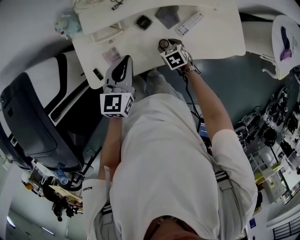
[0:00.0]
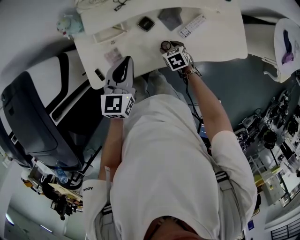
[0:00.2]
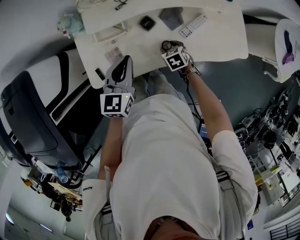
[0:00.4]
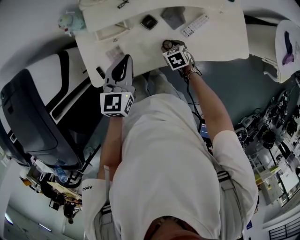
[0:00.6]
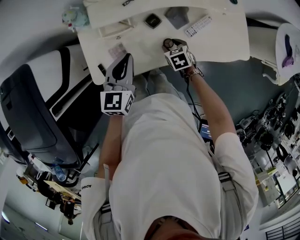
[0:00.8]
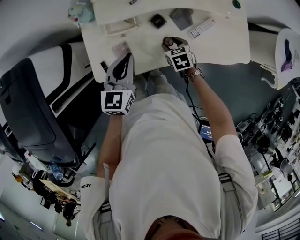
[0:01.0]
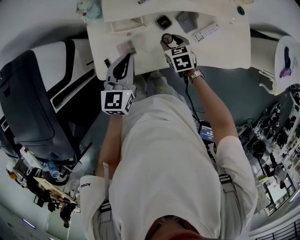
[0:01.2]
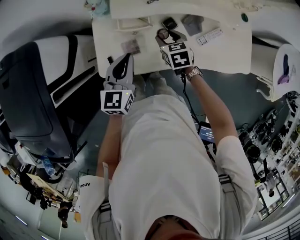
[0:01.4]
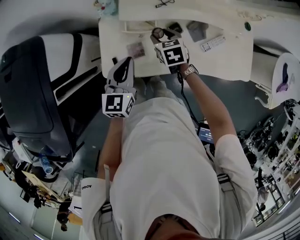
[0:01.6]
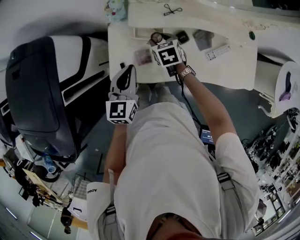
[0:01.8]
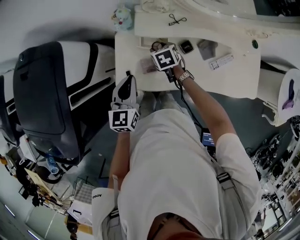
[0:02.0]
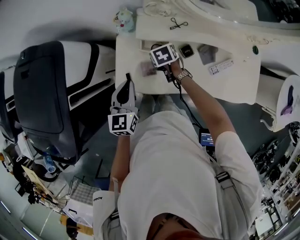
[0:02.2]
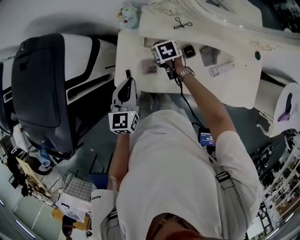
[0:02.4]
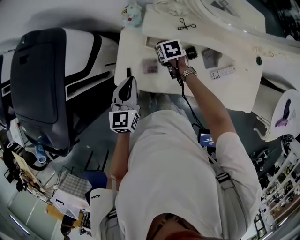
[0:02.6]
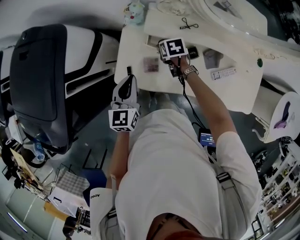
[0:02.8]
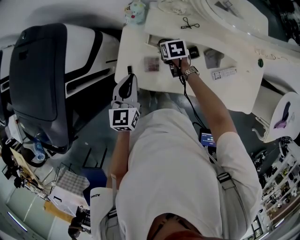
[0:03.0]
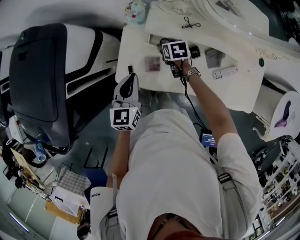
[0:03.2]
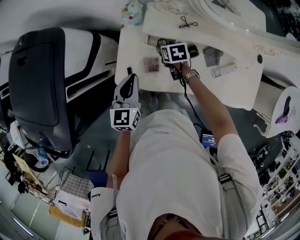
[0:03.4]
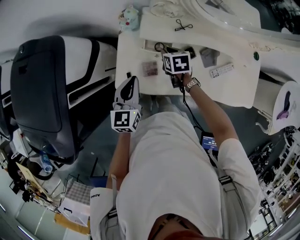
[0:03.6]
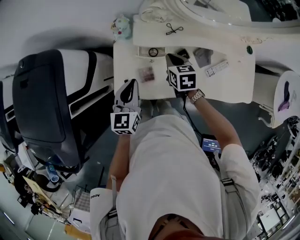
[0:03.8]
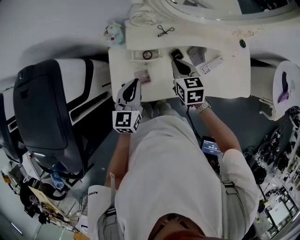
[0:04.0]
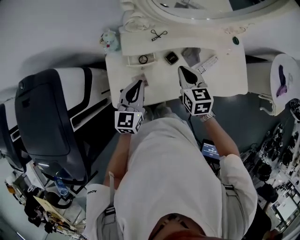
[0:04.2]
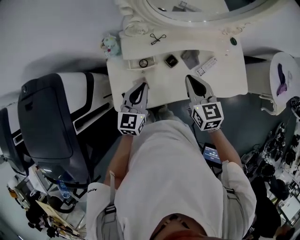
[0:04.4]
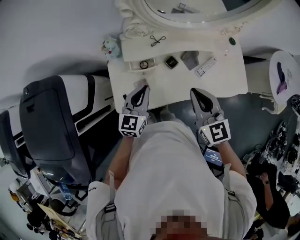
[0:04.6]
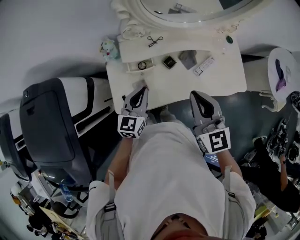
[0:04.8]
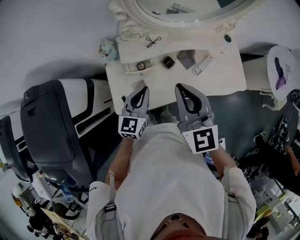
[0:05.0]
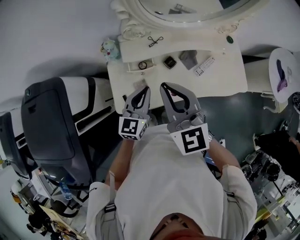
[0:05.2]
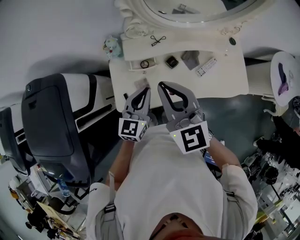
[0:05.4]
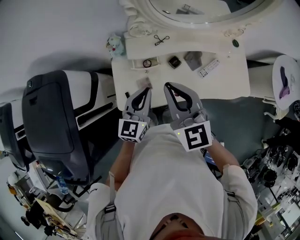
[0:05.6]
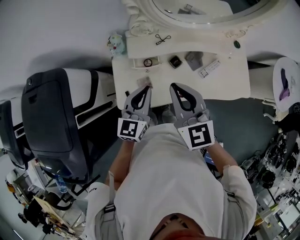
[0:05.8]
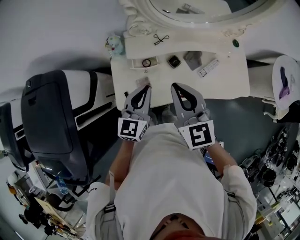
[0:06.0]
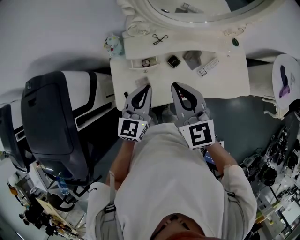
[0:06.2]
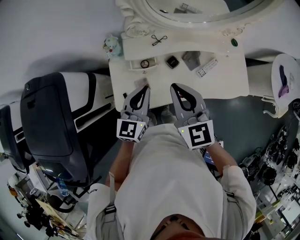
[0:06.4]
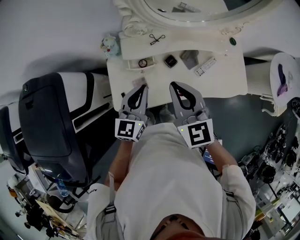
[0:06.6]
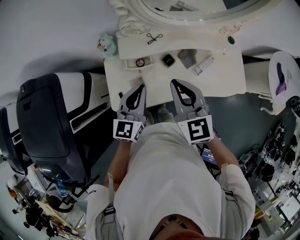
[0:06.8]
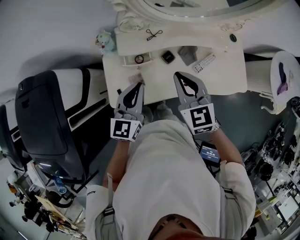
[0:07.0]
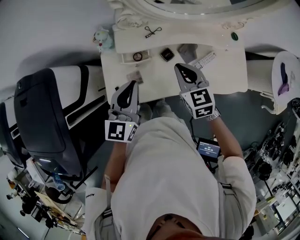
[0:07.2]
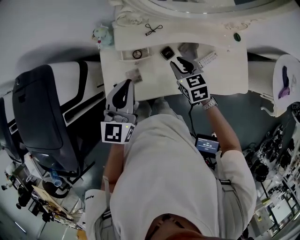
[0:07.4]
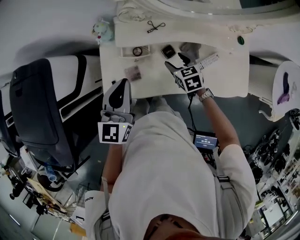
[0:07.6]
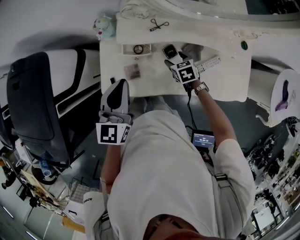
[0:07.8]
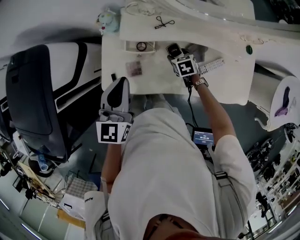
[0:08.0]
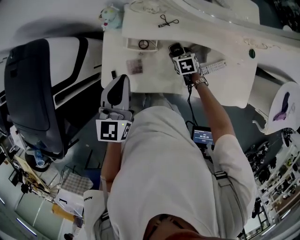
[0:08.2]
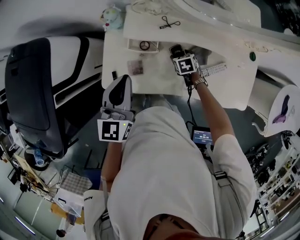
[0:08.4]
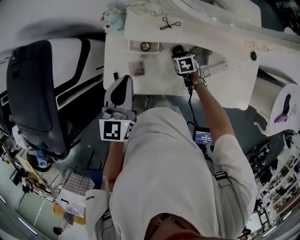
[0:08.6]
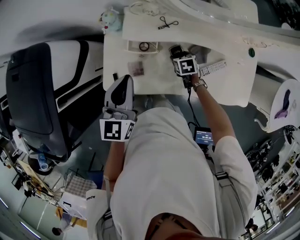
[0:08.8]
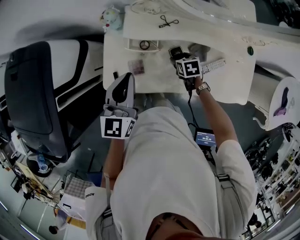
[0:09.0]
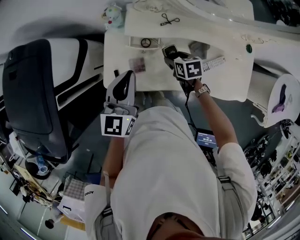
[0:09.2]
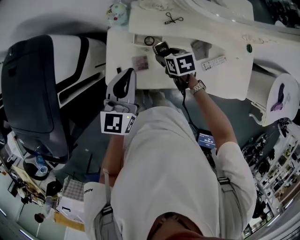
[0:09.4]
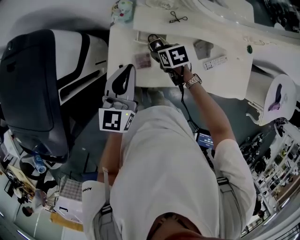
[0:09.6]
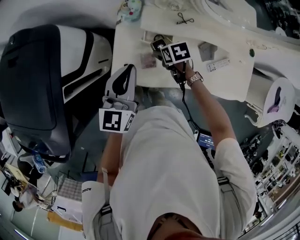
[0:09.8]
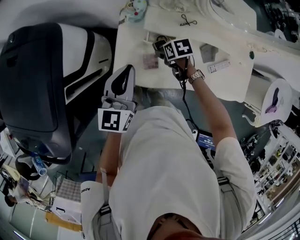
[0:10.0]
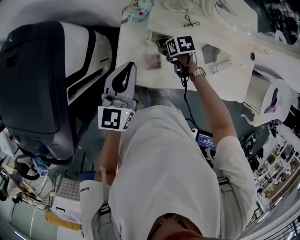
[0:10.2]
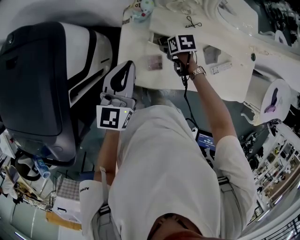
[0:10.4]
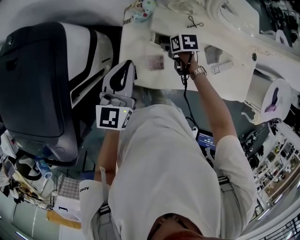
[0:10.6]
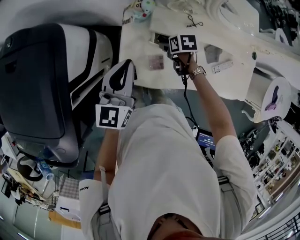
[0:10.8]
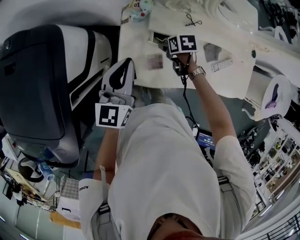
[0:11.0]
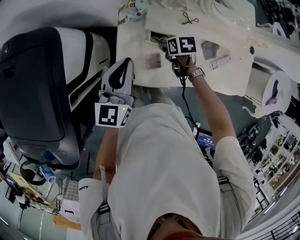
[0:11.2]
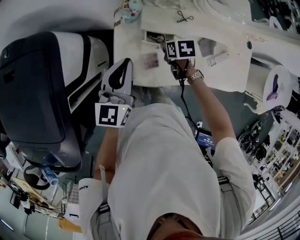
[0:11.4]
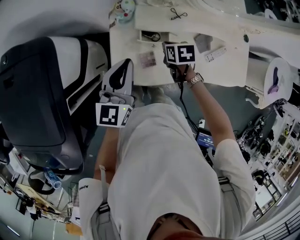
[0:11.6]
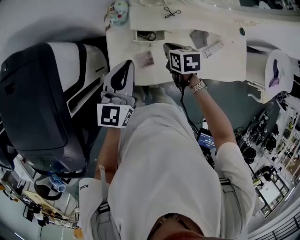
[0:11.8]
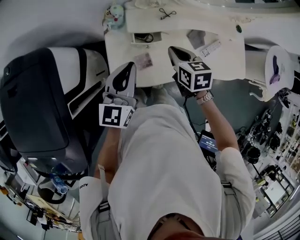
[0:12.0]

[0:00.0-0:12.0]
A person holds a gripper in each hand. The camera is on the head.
0:00.0 to 0:01.6: The left gripper moves to the left, some 15 cm; the right gripper travels to the left, upward and forward by about 25 cm.
0:01.6 to 0:03.0: The left gripper shifts roughly 5 cm to the left; the right gripper goes about 10 cm forward and downward.
0:03.0 to 0:04.4: The left gripper shifts by some 10 cm, and turns by roughly 30 degrees. Meanwhile the right gripper heads upward, covering about 25 cm, tilts its fingers roughly 40 degrees upward, and closes up.
0:04.4 to 0:06.0: The left gripper ends up some 5 cm from where it was, while the right gripper goes roughly 15 cm upward and to the left.
0:06.0 to 0:07.6: The right gripper moves downward and forward, roughly 30 cm, tips its fingers downward by approximately 40 degrees, and opens its fingers.
0:07.6 to 0:09.0: The right gripper goes about 10 cm downward.
0:09.0 to 0:10.4: Both grippers travel together to the left and forward, some 15 cm.
0:10.4 to 0:12.0: The right gripper heads upward, covering about 15 cm, turns by some 40 degrees, and closes its fingers; the left gripper ends up approximately 5 cm from where it was.

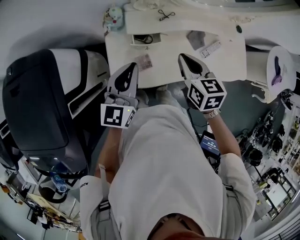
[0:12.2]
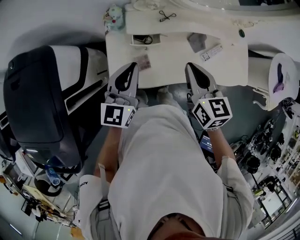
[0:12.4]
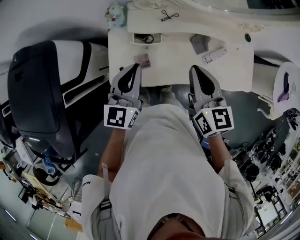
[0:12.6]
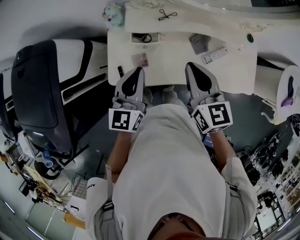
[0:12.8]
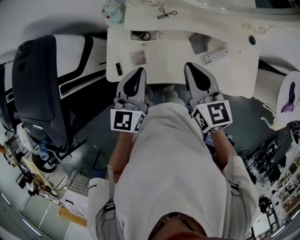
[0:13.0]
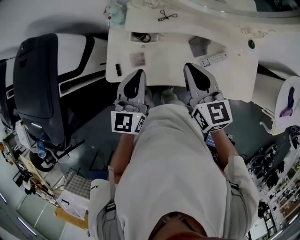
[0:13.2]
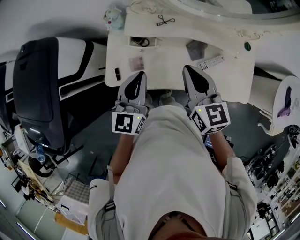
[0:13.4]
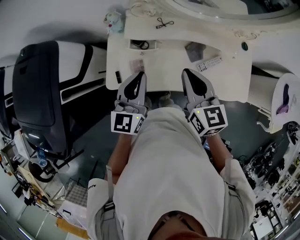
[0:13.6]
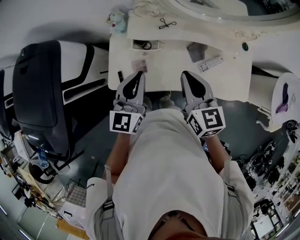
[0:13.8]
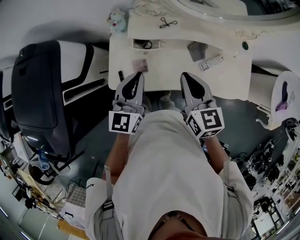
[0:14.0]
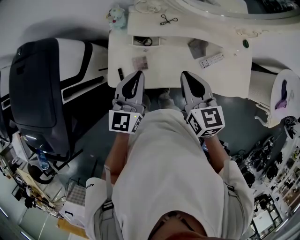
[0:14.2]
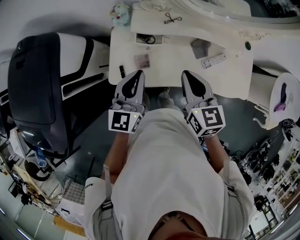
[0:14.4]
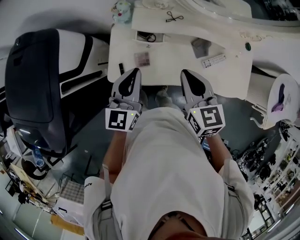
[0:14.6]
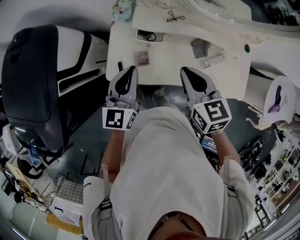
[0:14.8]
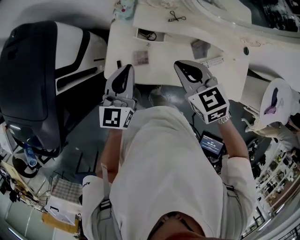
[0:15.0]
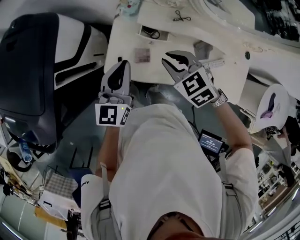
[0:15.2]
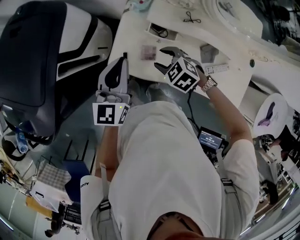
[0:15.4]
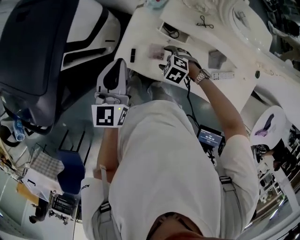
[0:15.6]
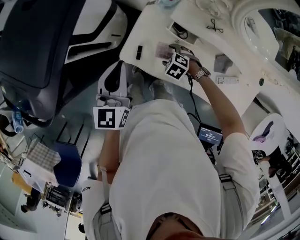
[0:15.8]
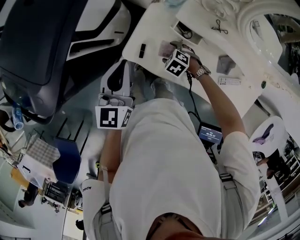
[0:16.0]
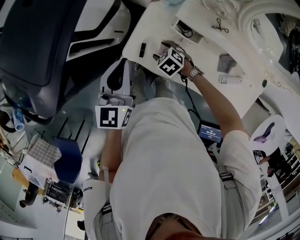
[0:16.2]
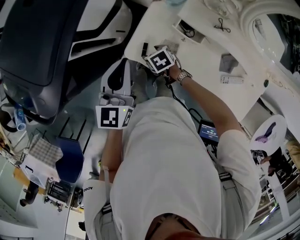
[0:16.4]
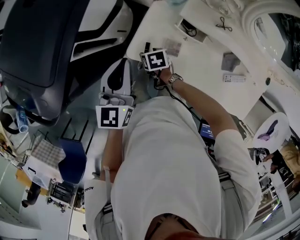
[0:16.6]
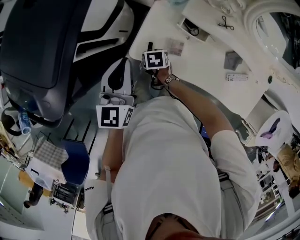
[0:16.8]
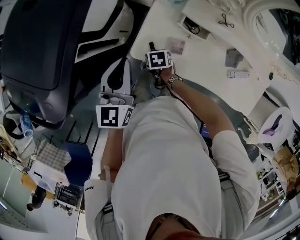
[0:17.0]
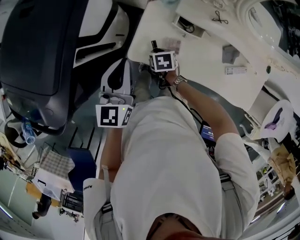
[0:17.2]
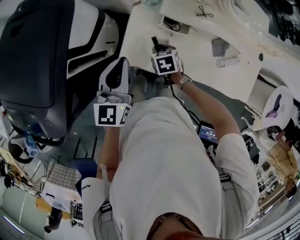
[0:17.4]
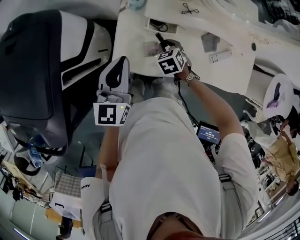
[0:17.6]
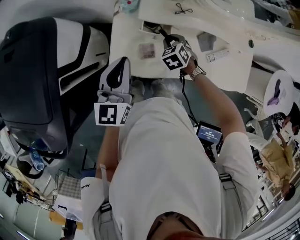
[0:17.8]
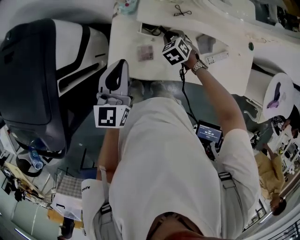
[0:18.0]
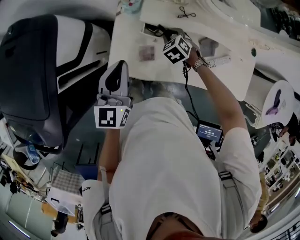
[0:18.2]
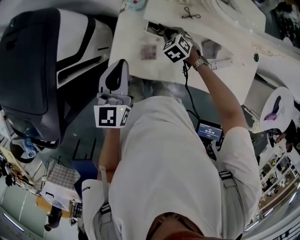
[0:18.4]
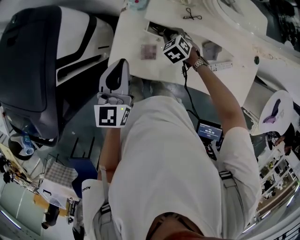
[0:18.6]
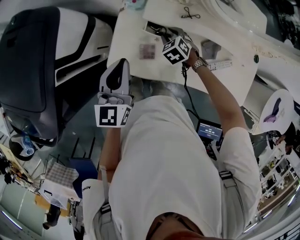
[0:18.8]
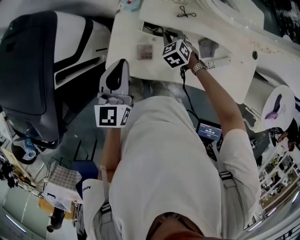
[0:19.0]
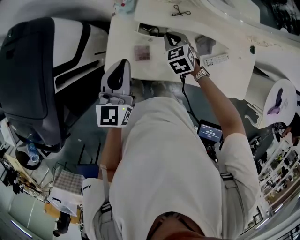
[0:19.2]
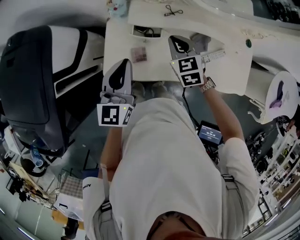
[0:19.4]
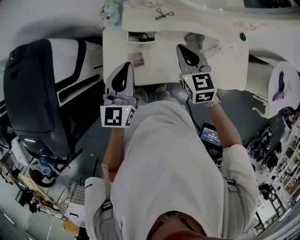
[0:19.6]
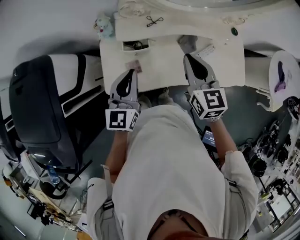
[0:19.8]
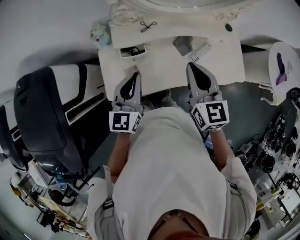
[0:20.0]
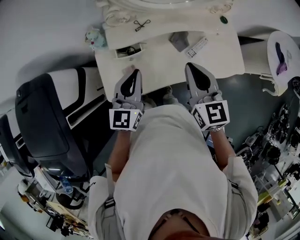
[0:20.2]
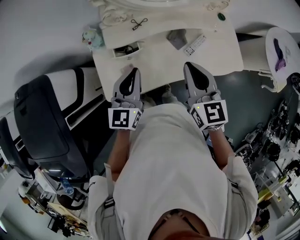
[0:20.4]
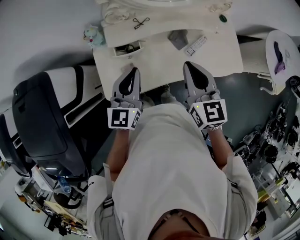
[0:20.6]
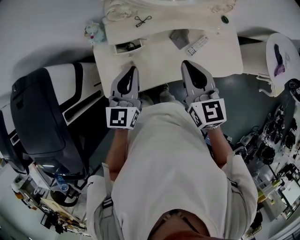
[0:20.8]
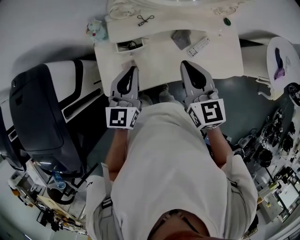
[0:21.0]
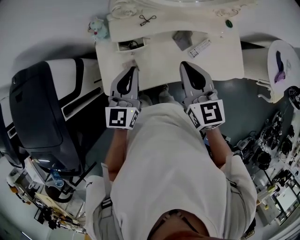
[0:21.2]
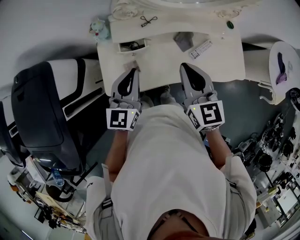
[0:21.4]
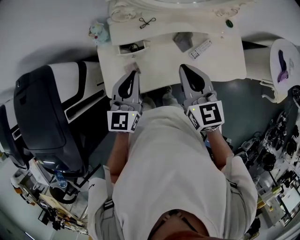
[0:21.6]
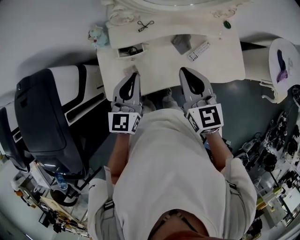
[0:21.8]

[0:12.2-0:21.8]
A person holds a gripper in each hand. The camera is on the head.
0:12.2 to 0:13.8: The right gripper shifts approximately 10 cm to the right and upward; the left gripper moves to the right, about 10 cm.
0:13.8 to 0:15.4: The right gripper is displaced downward by about 20 cm, points its fingers approximately 40 degrees further downward, and opens up, while the left gripper changes place by about 15 cm.
0:15.4 to 0:17.0: The left gripper changes place by approximately 10 cm. The right gripper moves downward, some 15 cm, rolls clockwise, seen from behind, by some 50 degrees, and closes up.
0:17.0 to 0:18.6: The right gripper shifts by some 25 cm, and rotates approximately 40 degrees; the left gripper ends up roughly 10 cm from where it was.
0:18.6 to 0:20.2: The right gripper travels upward by roughly 30 cm, and angles its fingers upward, by approximately 40 degrees, while the left gripper ends up roughly 15 cm from where it was, and swivels approximately 30 degrees.
0:20.2 to 0:21.8: The grippers stay close to where they were, moving slightly.

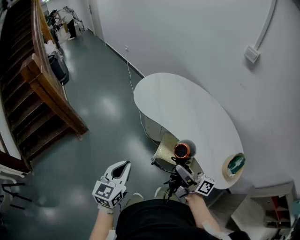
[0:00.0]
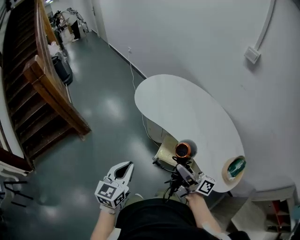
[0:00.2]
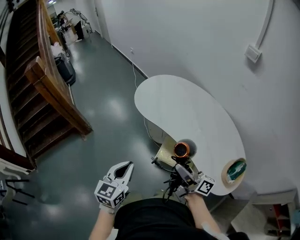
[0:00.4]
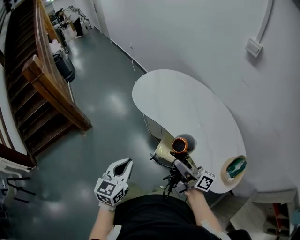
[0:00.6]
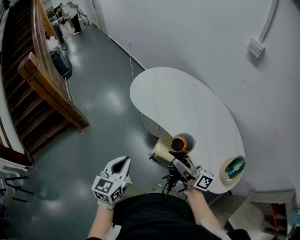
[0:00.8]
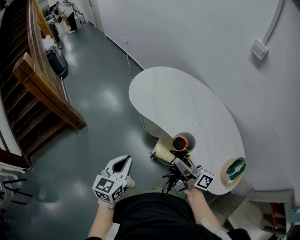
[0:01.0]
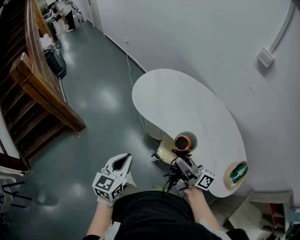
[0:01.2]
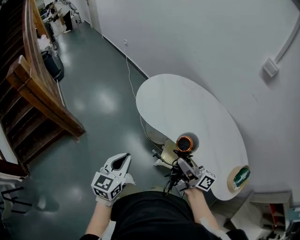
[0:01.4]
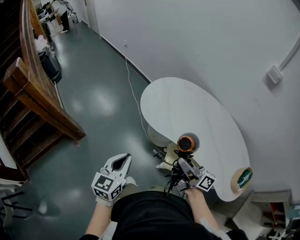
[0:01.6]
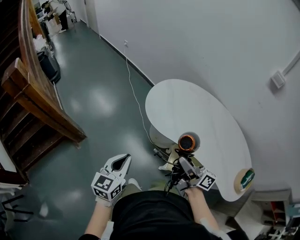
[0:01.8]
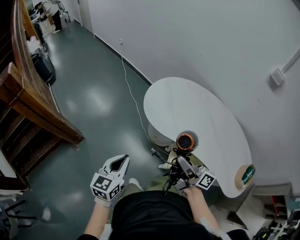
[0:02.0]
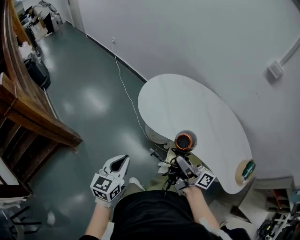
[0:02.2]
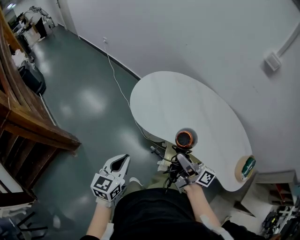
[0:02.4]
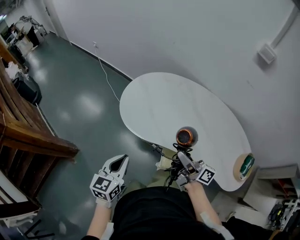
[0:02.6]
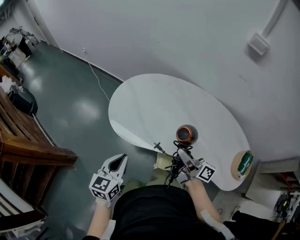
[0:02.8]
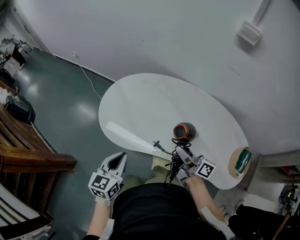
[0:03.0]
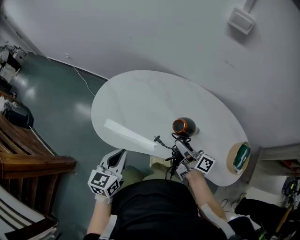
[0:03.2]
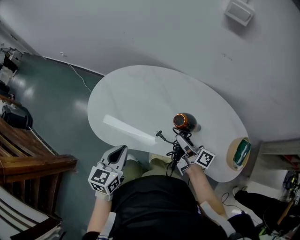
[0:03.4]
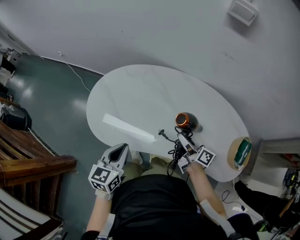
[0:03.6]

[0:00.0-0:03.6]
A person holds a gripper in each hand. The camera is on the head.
0:00.0 to 0:01.8: Both grippers travel together forward and to the left, roughly 25 cm.
0:01.8 to 0:03.6: The left gripper ends up approximately 35 cm from where it was, and changes its angle by roughly 30 degrees, while the right gripper moves some 40 cm, and changes its angle by approximately 30 degrees.
